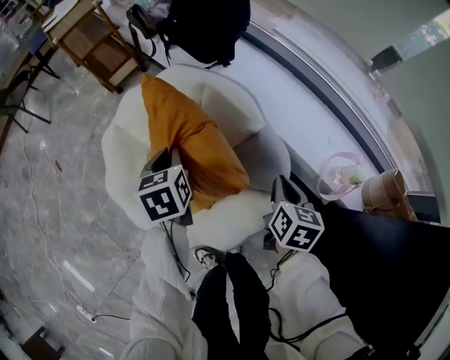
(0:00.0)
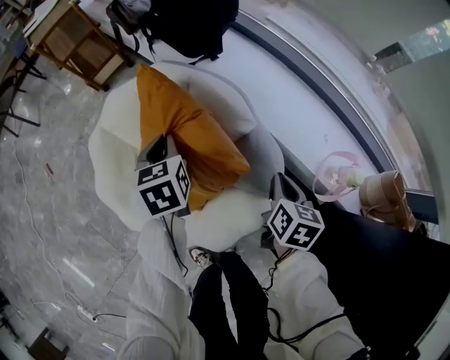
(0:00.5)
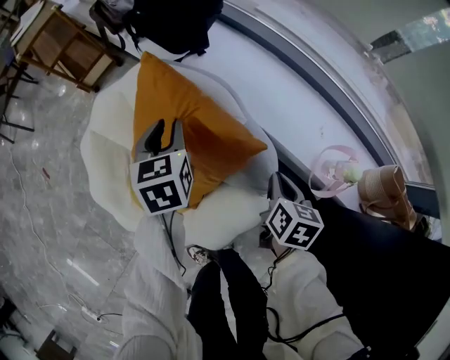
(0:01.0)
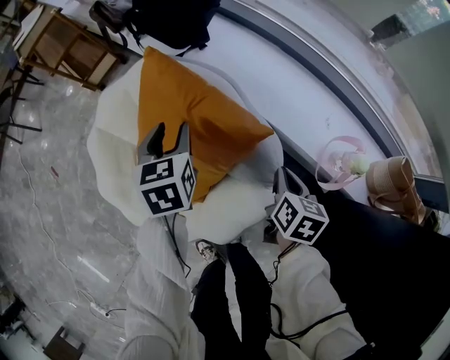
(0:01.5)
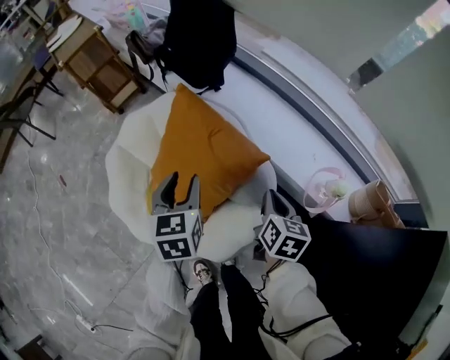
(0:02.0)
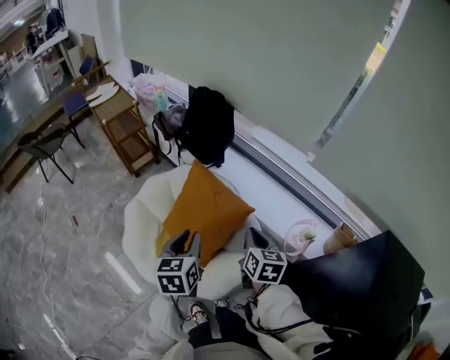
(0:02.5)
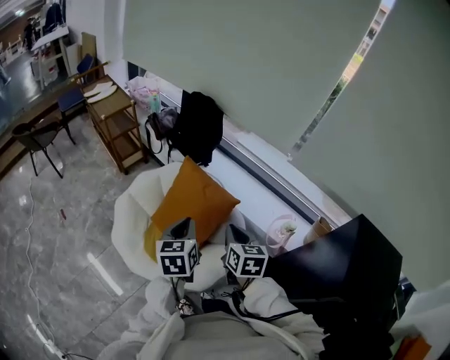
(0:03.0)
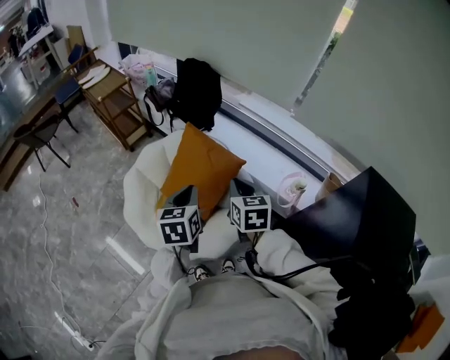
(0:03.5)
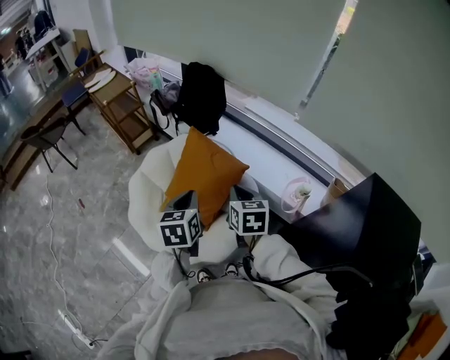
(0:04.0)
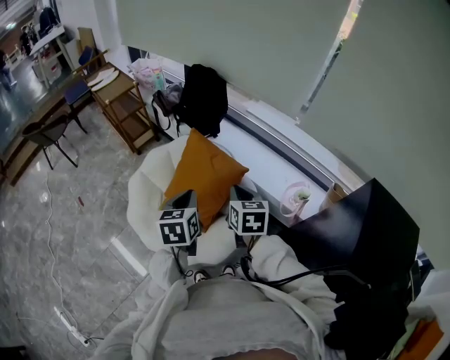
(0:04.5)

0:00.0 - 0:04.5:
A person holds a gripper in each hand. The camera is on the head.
0:00.0 - 0:02.0: The left gripper heads upward and to the right, covering about 10 cm, travels forward and back again, roughly 10 cm each way, and opens up.
0:02.0 - 0:04.5: The left gripper goes roughly 25 cm upward and backward, and closes its fingers. The right gripper shifts approximately 30 cm upward, backward and to the left, and turns by roughly 20 degrees.

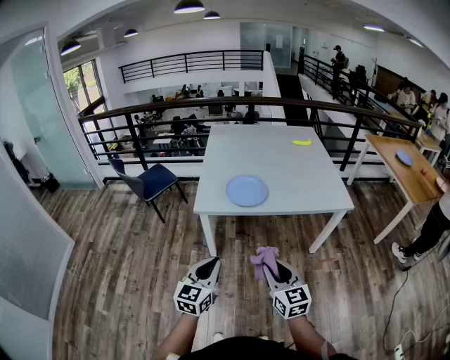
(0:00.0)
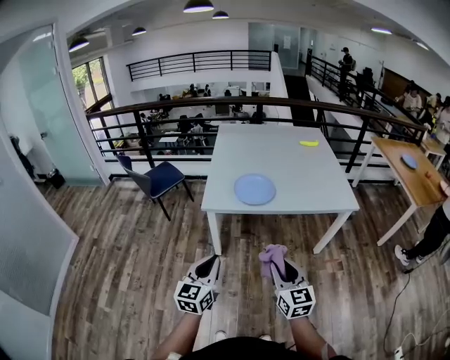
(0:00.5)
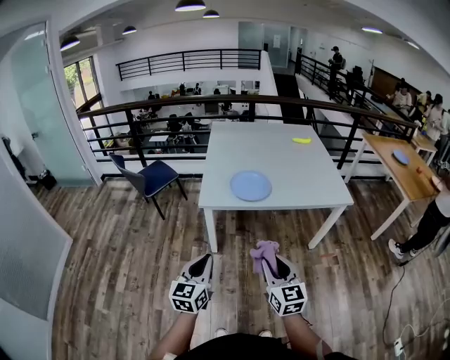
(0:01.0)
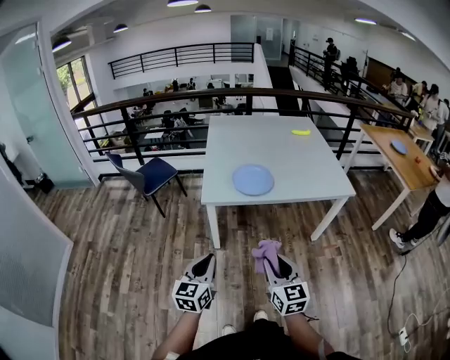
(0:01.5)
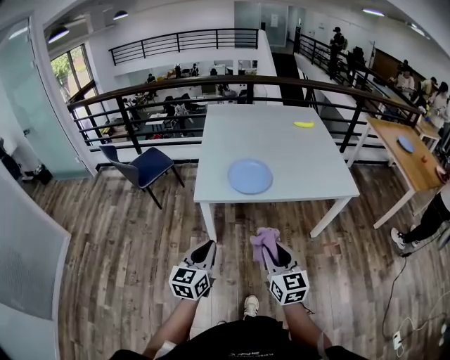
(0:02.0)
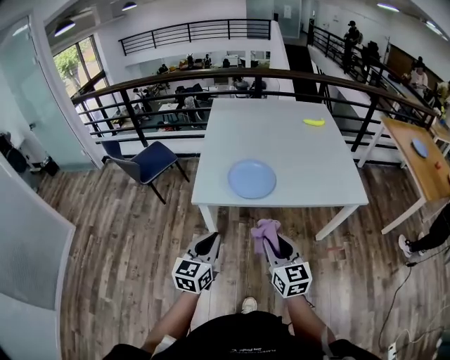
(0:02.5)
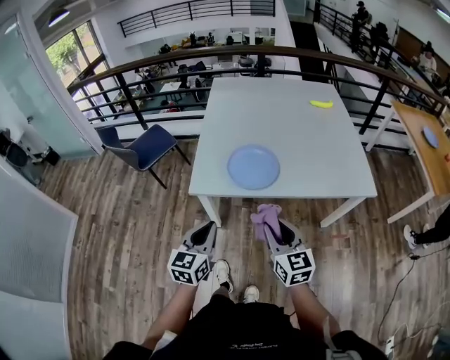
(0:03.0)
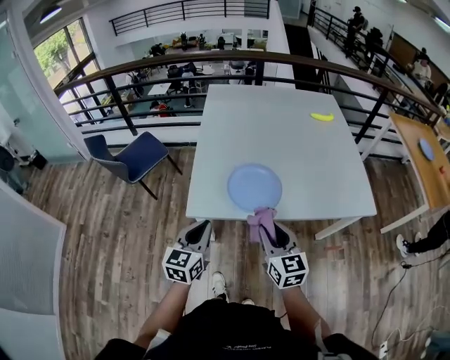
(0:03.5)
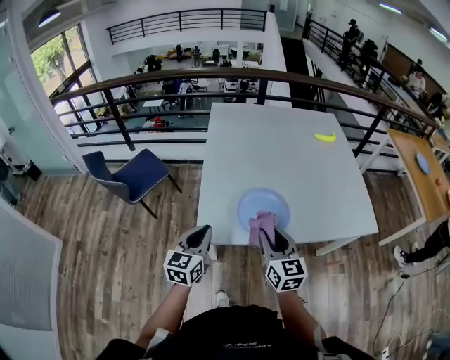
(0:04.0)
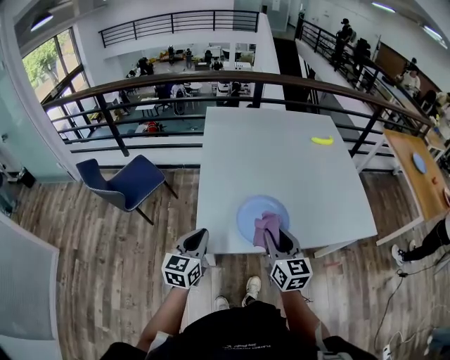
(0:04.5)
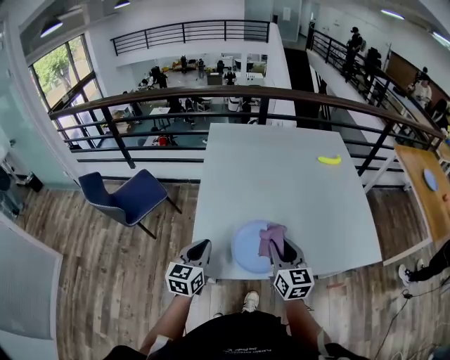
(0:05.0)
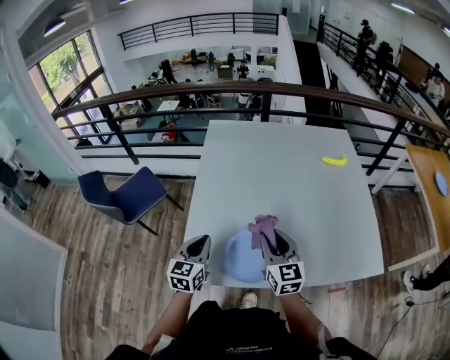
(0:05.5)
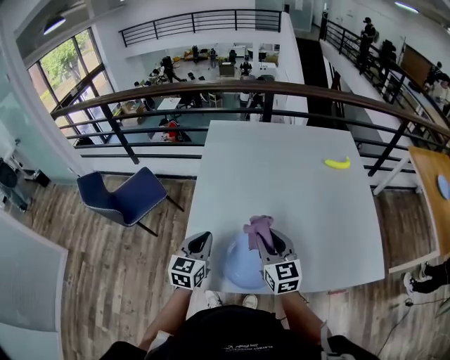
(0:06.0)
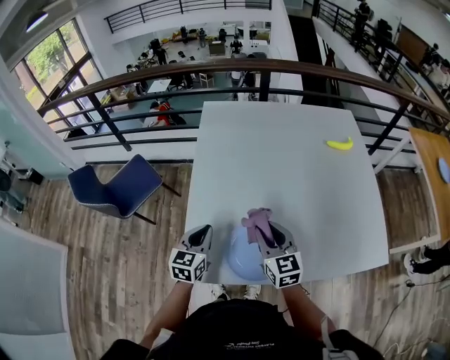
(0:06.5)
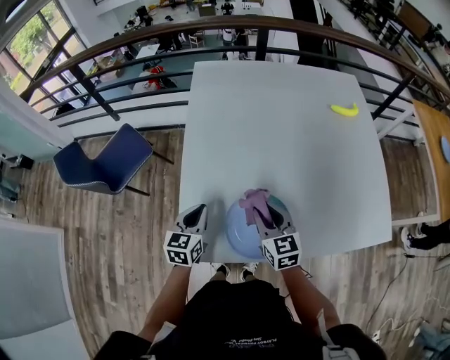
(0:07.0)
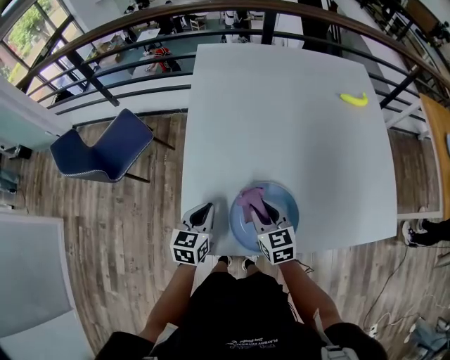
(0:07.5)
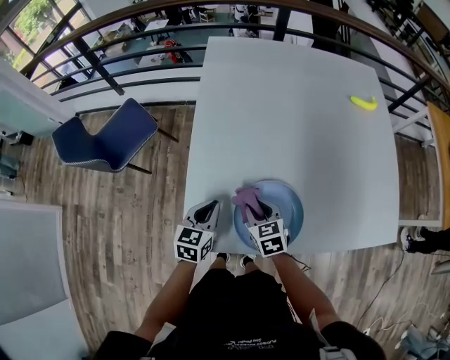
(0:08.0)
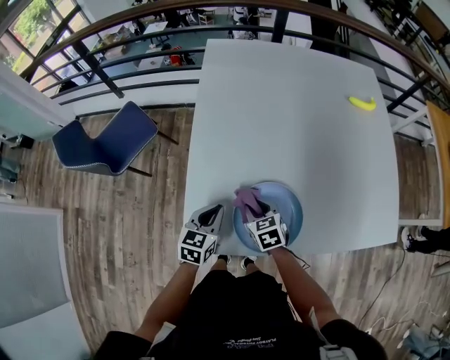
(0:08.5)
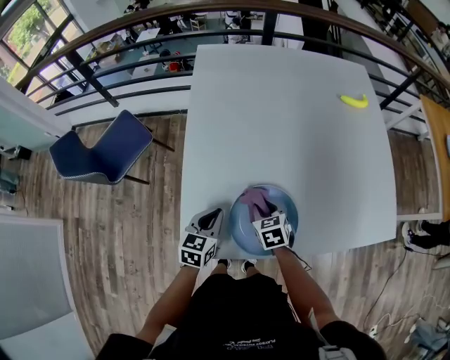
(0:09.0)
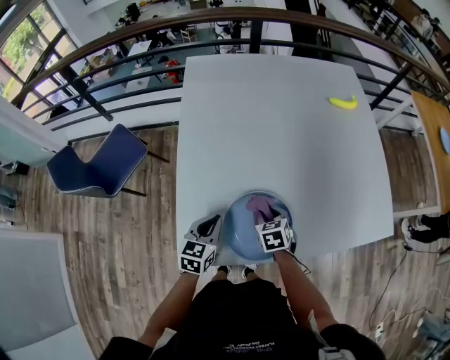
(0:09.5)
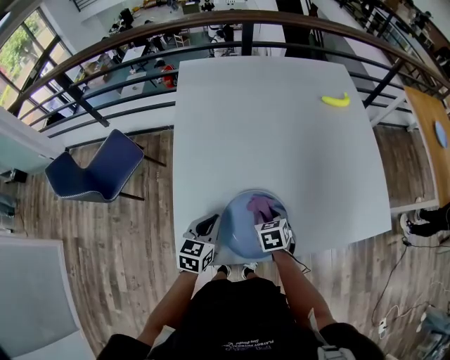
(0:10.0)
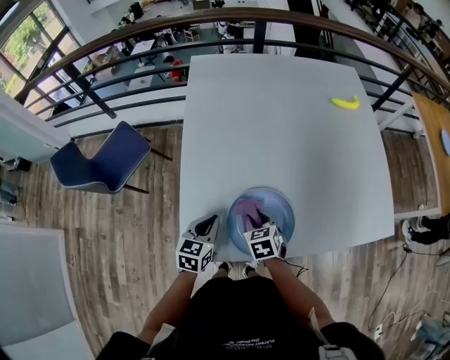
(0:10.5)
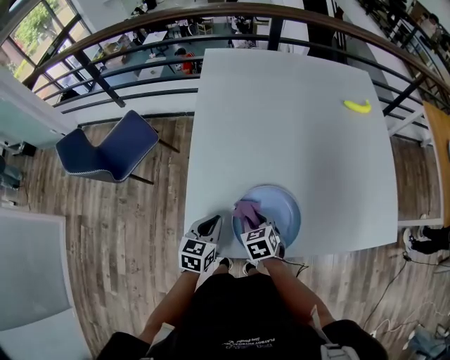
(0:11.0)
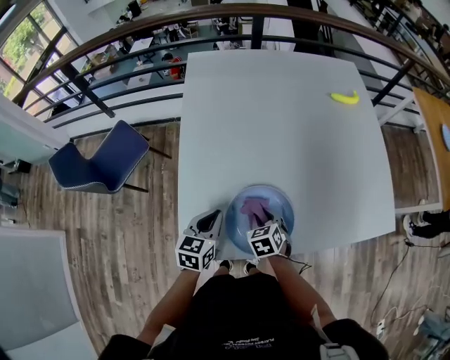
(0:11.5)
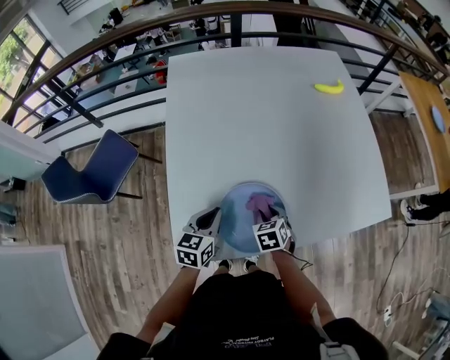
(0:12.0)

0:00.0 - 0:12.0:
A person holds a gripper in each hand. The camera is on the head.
0:00.0 - 0:02.0: The right gripper moves forward, about 5 cm. Meanwhile the left gripper shifts roughly 10 cm forward and to the left.
0:02.0 - 0:04.0: Both grippers move forward, approximately 35 cm.
0:04.0 - 0:06.0: Both grippers move forward, roughly 25 cm.
0:06.0 - 0:08.0: Both grippers travel together downward, about 20 cm. The right gripper tilts its fingers roughly 30 degrees downward.
0:08.0 - 0:10.0: The left gripper travels to the right by approximately 5 cm. The right gripper travels to the right by approximately 10 cm, and swivels about 20 degrees.
0:10.0 - 0:12.0: The right gripper moves roughly 10 cm to the left and comes back.

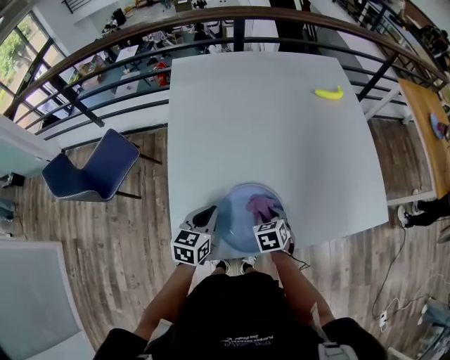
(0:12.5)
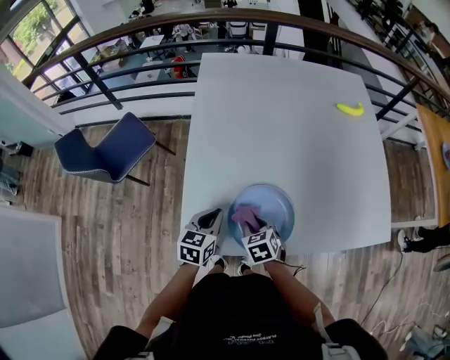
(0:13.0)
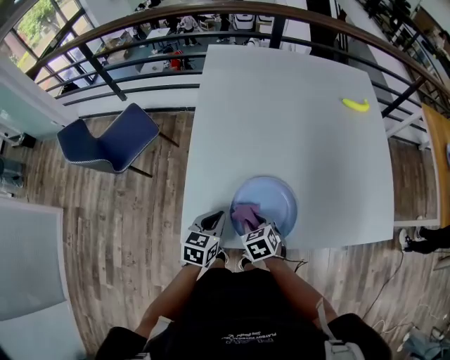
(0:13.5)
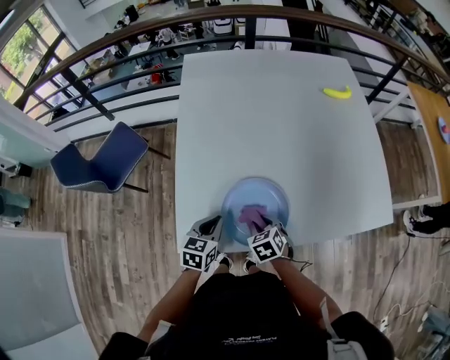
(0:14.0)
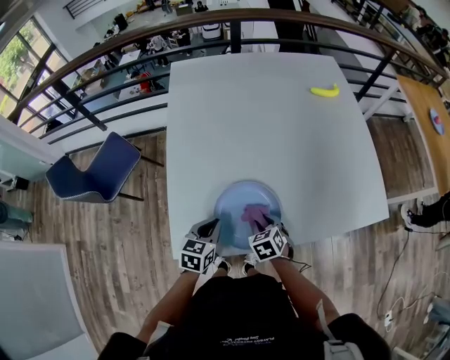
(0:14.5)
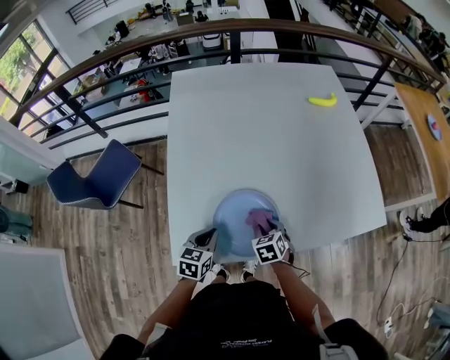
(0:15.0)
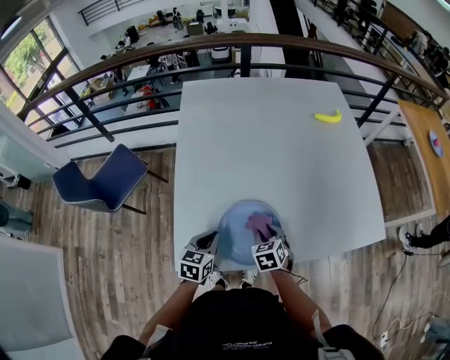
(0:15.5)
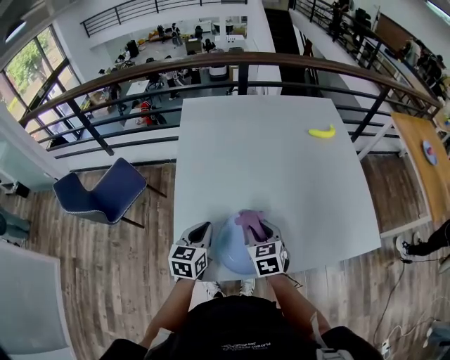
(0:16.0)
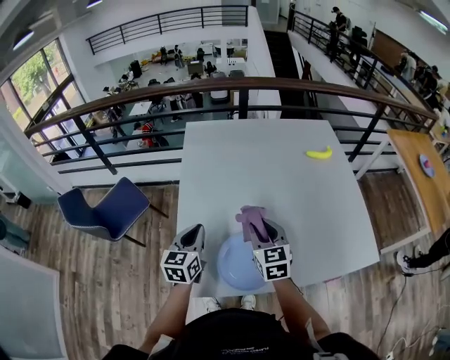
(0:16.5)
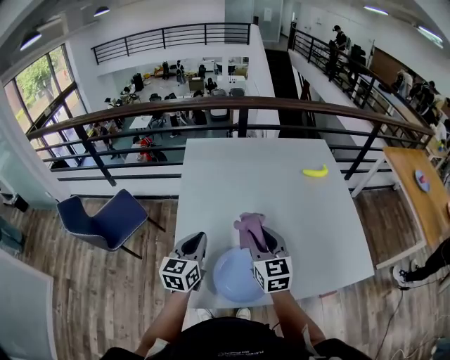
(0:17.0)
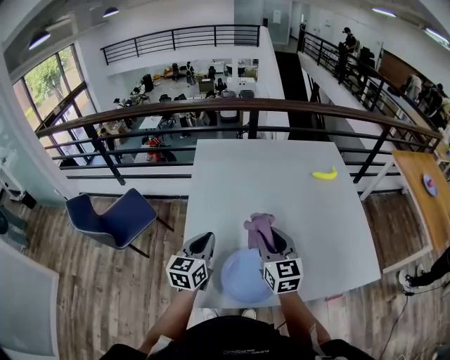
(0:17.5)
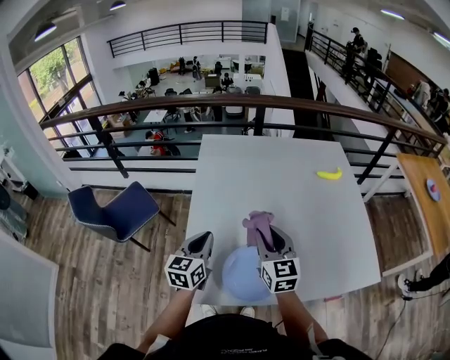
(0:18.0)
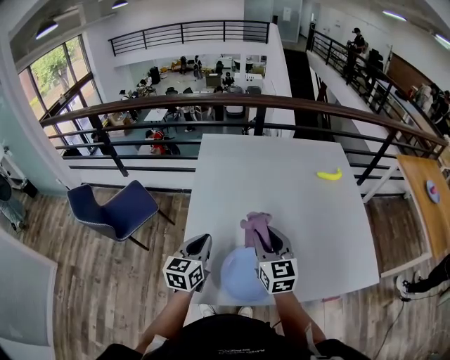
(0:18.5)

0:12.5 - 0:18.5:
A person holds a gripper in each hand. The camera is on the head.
0:12.5 - 0:14.5: The right gripper goes to the left and returns, about 10 cm each way. Meanwhile the left gripper moves roughly 5 cm.
0:14.5 - 0:16.5: The left gripper shifts approximately 20 cm upward, to the left and forward, and rotates some 30 degrees, while the right gripper shifts some 25 cm upward and forward, and tips its fingers upward by some 40 degrees.
0:16.5 - 0:18.5: The right gripper heads upward, covering approximately 5 cm.

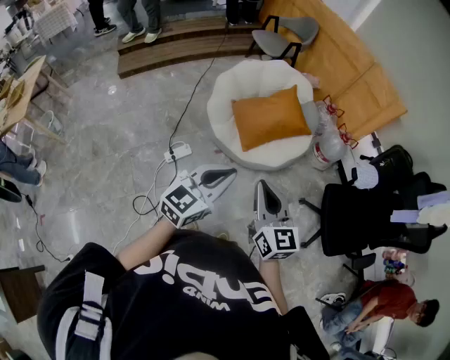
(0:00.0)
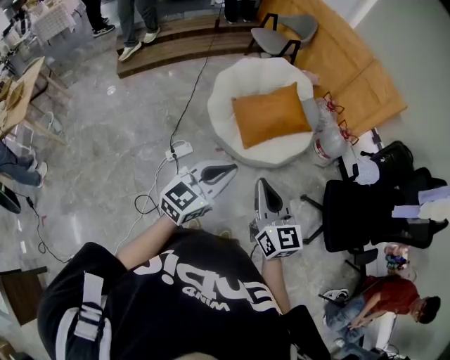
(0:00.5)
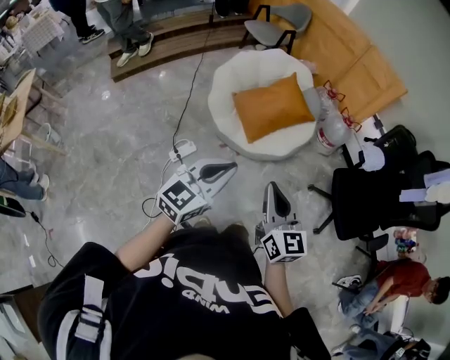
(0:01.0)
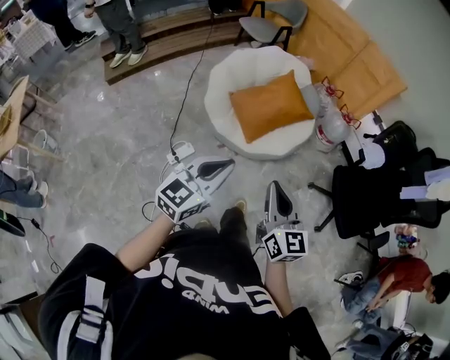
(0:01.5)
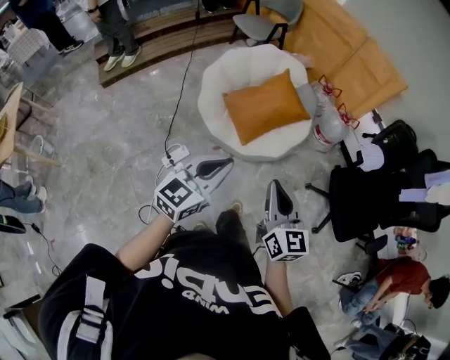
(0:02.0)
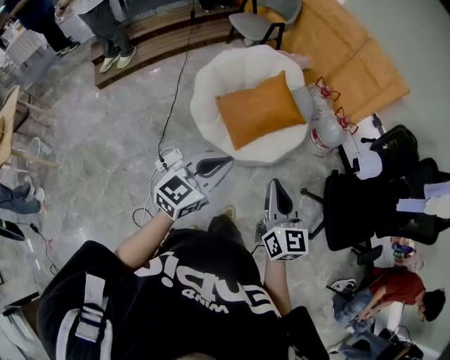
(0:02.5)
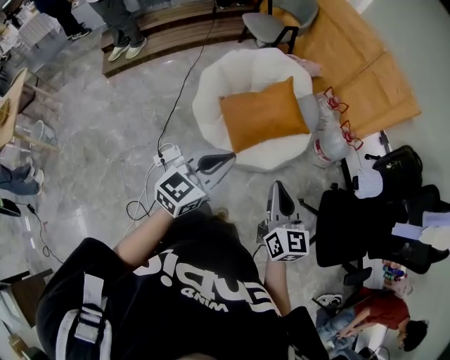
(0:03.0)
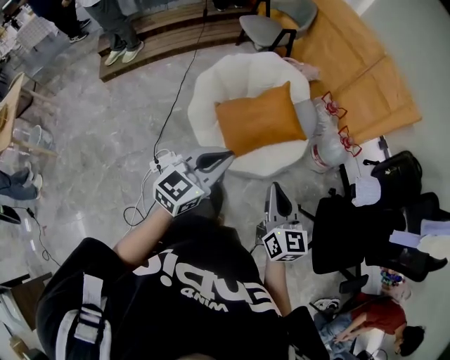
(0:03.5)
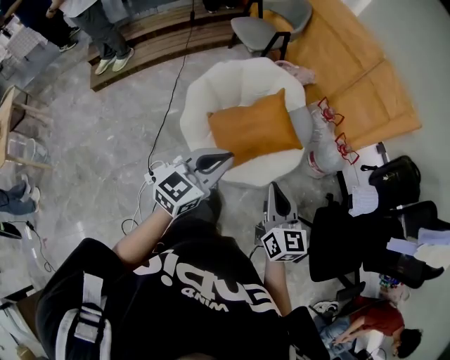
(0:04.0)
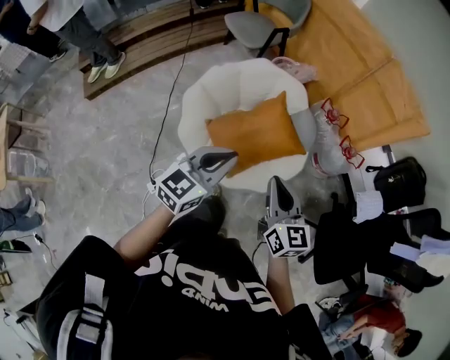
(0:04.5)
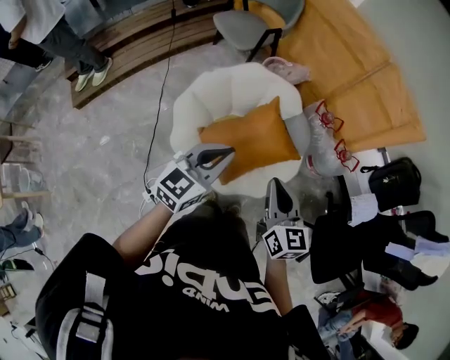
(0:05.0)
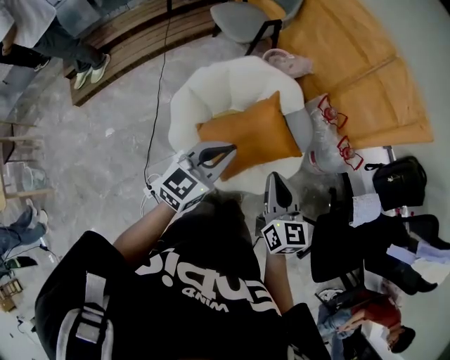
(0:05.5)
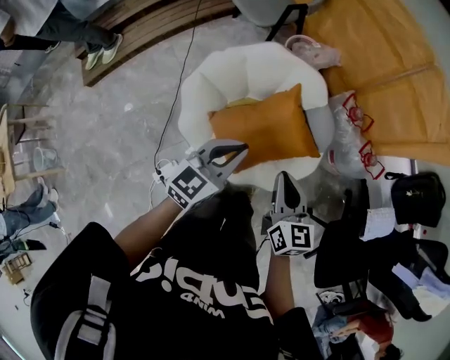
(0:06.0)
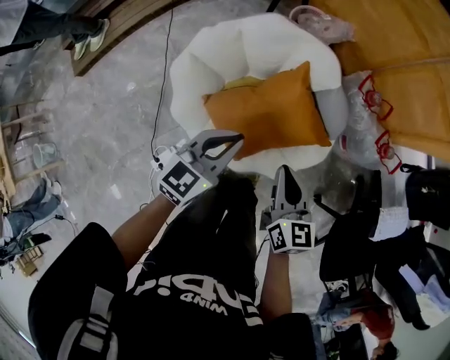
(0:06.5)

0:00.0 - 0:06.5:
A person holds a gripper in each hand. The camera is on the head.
0:00.0 - 0:02.0: The two grippers go approximately 5 cm forward.
0:02.0 - 0:04.5: The grippers both shift forward by about 40 cm.
0:04.5 - 0:06.5: Both grippers travel together forward and downward, roughly 30 cm.
